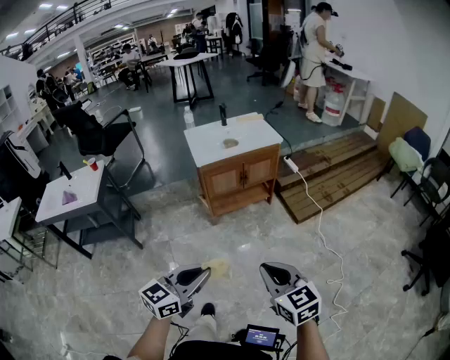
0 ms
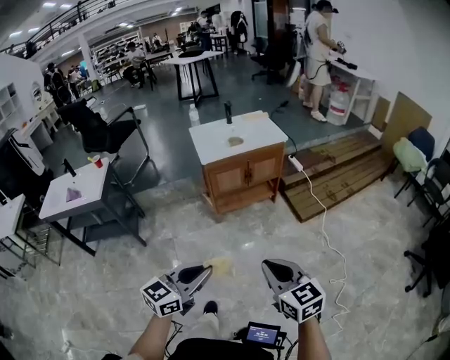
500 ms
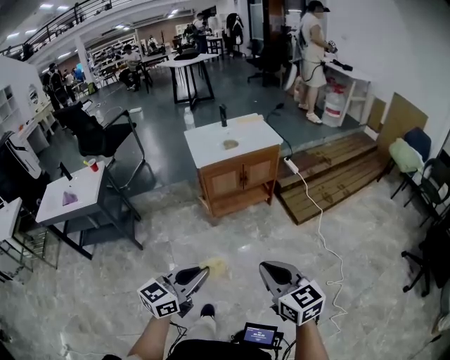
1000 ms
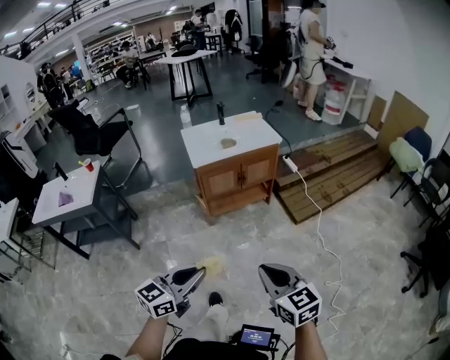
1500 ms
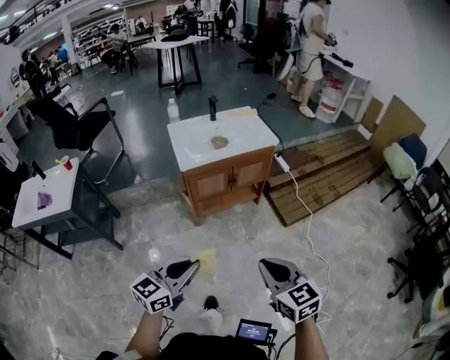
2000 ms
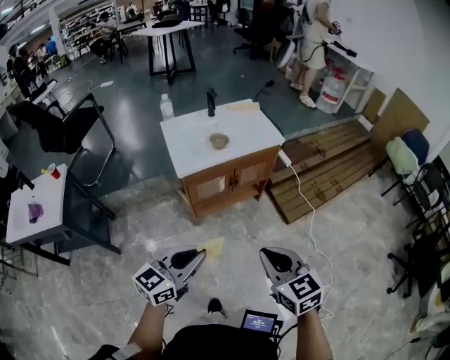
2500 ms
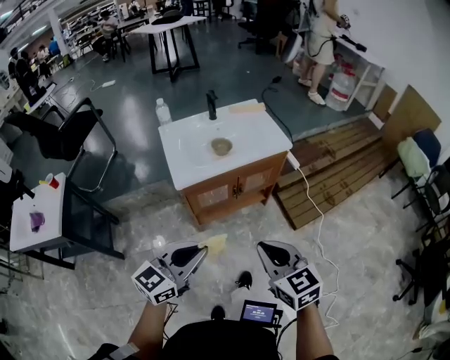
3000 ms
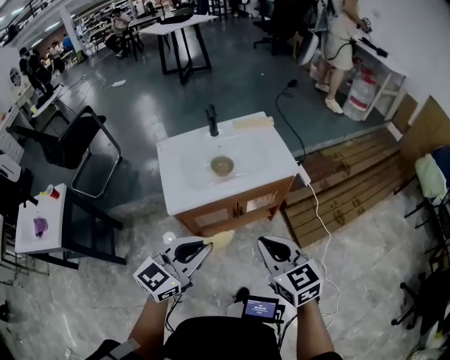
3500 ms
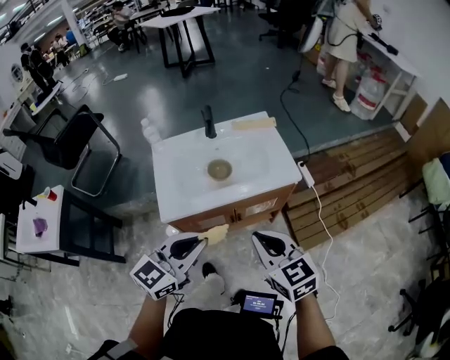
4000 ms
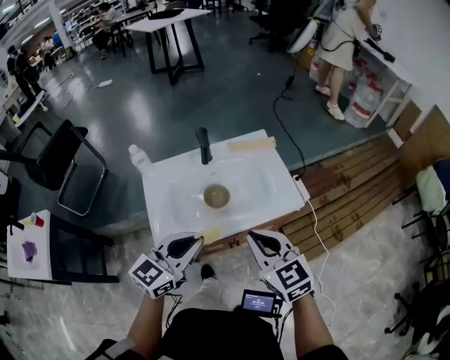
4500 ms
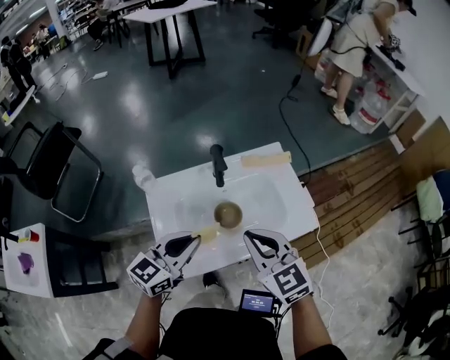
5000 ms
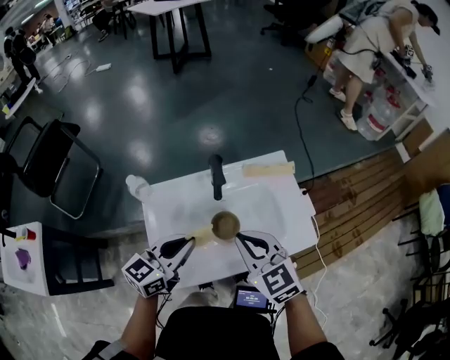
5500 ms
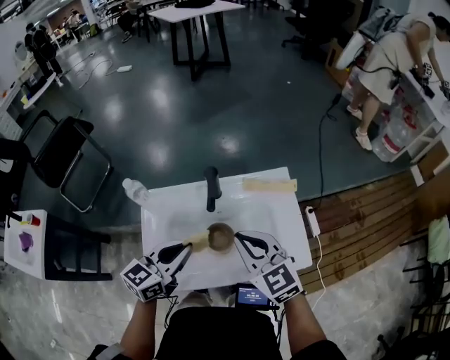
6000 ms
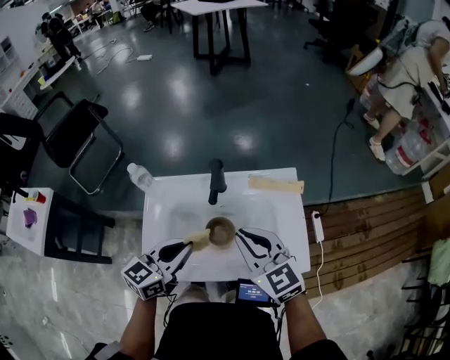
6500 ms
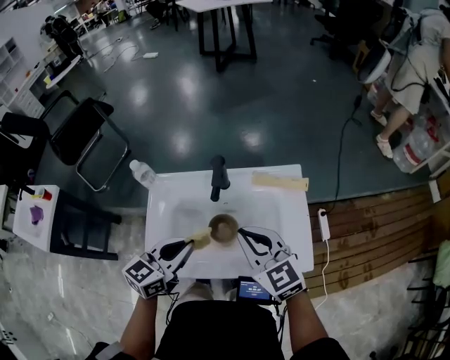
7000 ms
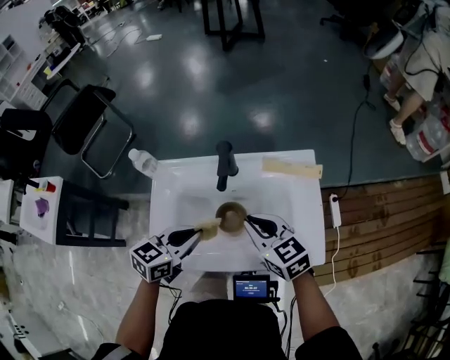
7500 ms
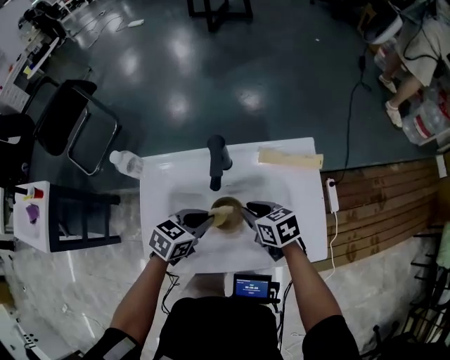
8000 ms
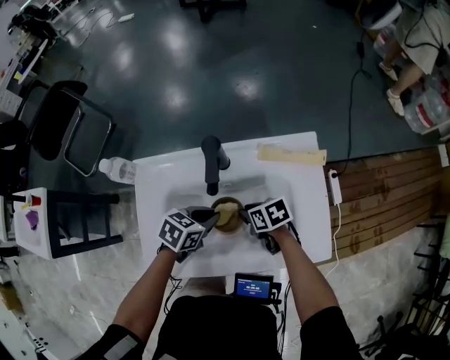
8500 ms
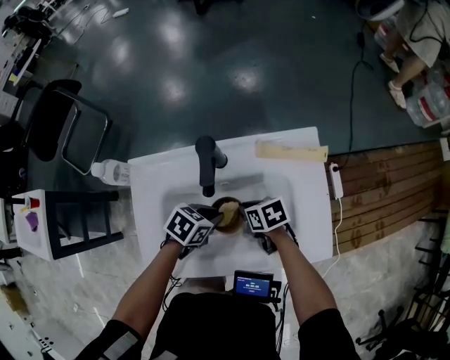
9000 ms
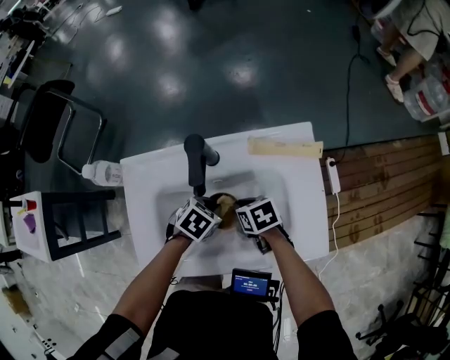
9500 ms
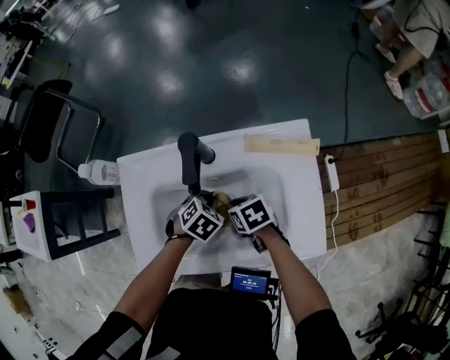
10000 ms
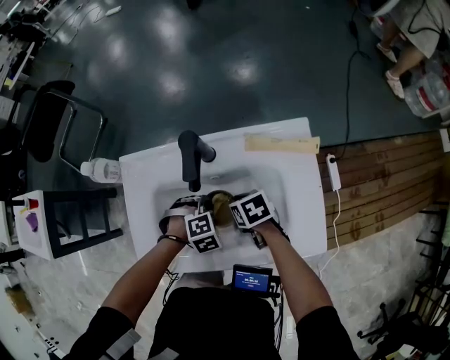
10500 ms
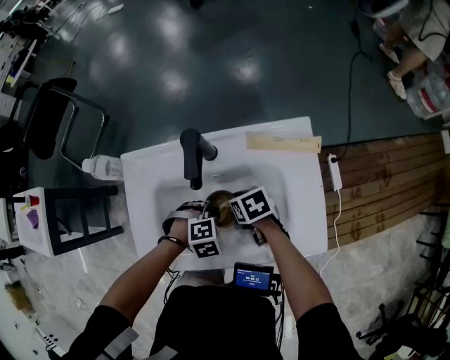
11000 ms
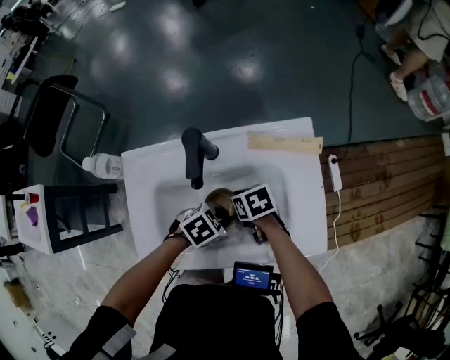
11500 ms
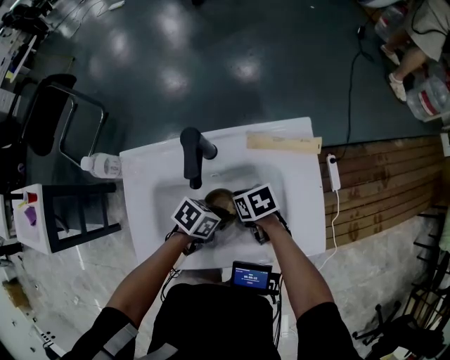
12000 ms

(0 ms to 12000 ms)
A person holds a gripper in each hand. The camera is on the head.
0 ms - 2000 ms: The two grippers go approximately 15 cm forward.
2000 ms - 4000 ms: Both grippers are carried forward, approximately 50 cm.
4000 ms - 6000 ms: Both grippers move forward, approximately 30 cm.
6000 ms - 8000 ms: The two grippers go about 20 cm downward. The right gripper turns by some 40 degrees; the left gripper tips its fingers downward by some 30 degrees.
8000 ms - 10000 ms: The two grippers go approximately 10 cm downward. The left gripper points its fingers about 30 degrees further downward.
10000 ms - 12000 ms: The left gripper shifts by about 10 cm, and turns by some 40 degrees.

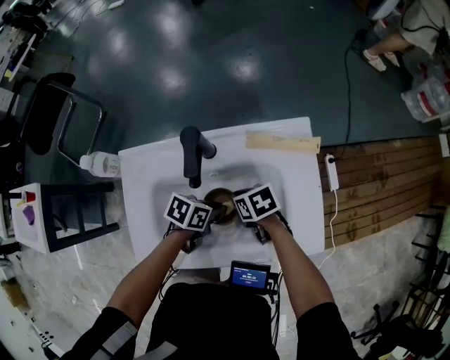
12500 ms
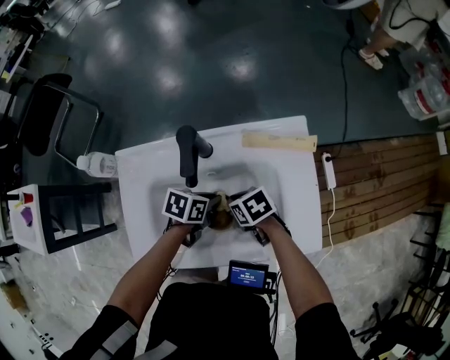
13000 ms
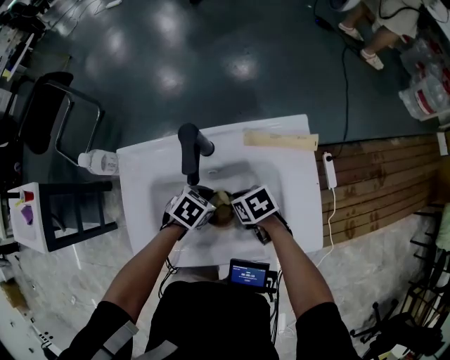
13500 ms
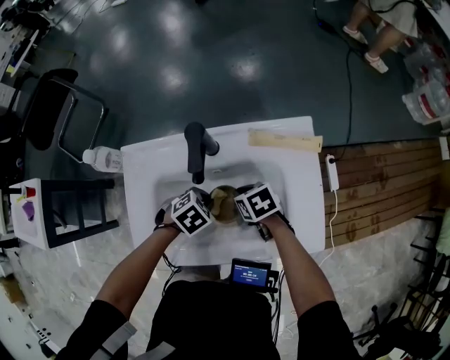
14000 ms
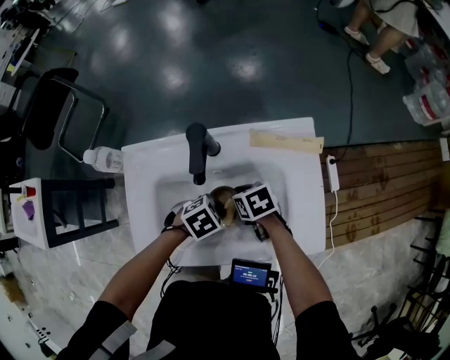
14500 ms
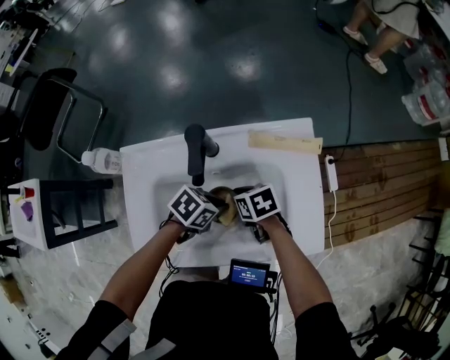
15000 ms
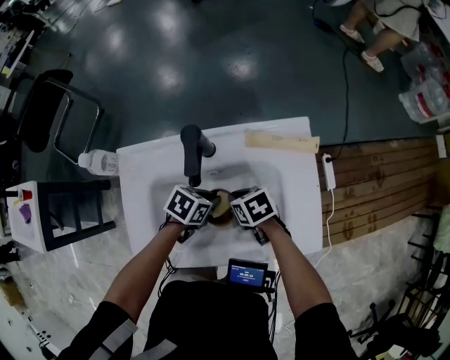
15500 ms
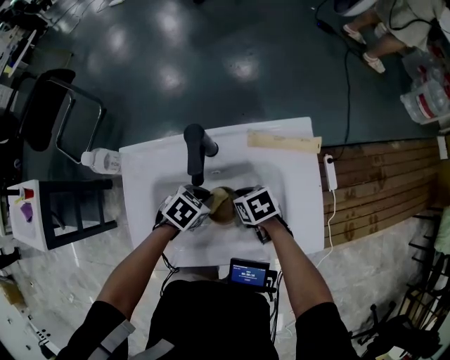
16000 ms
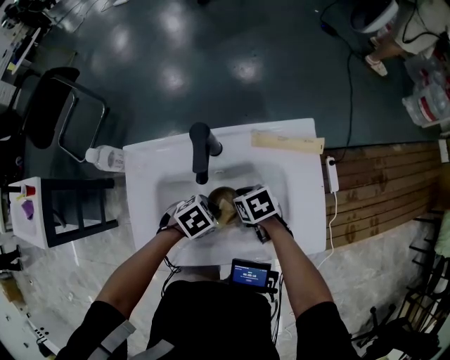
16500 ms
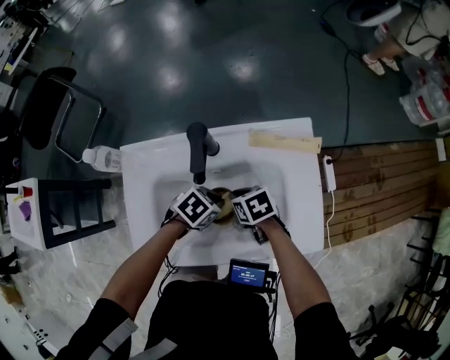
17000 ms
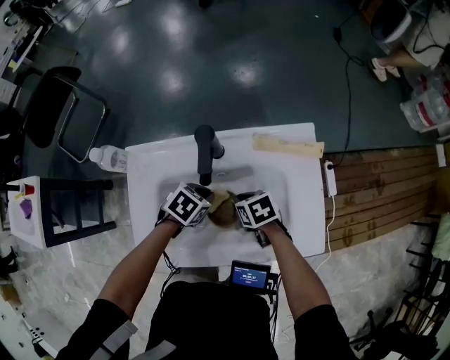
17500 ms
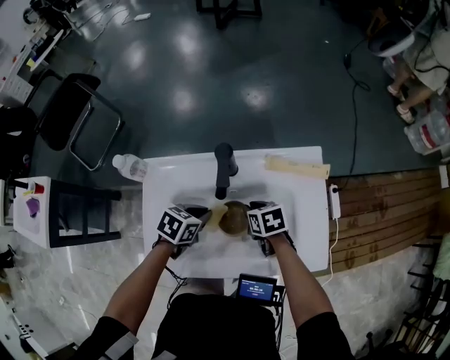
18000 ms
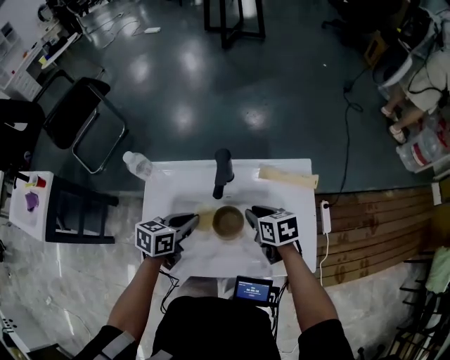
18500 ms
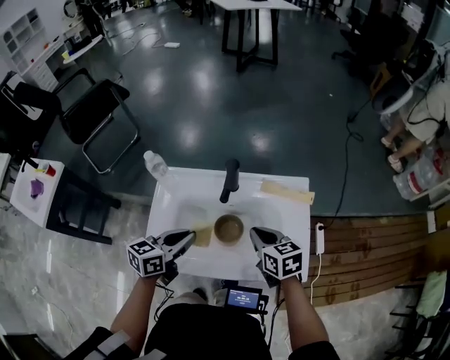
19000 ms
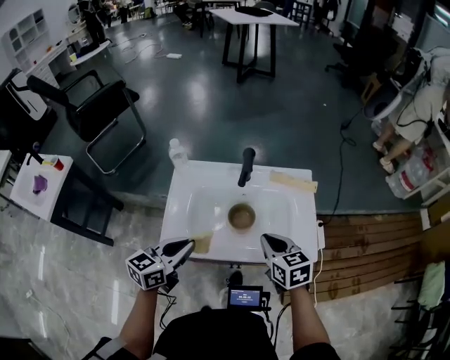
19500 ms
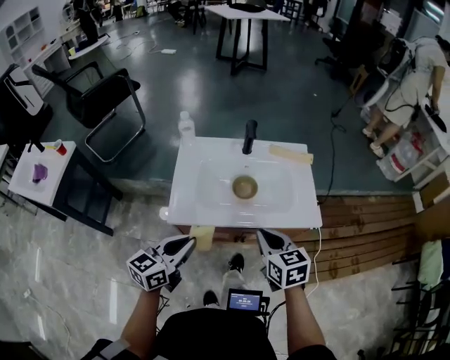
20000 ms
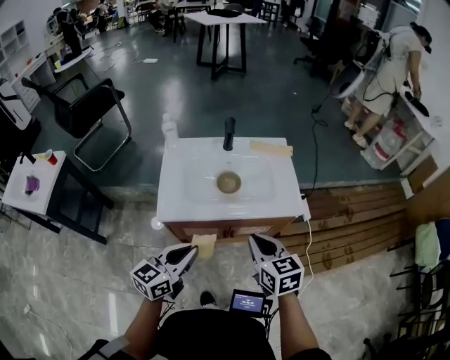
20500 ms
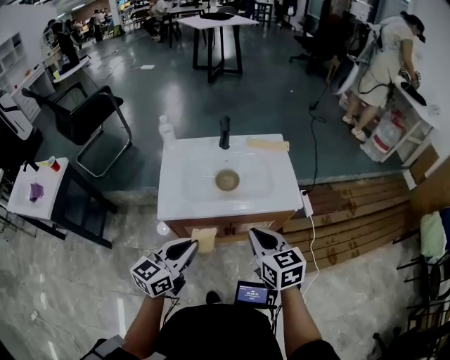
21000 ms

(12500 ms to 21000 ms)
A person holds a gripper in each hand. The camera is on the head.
12500 ms - 14500 ms: The left gripper swivels some 40 degrees.
16500 ms - 19000 ms: Both grippers move upward, some 20 cm. The left gripper tips its fingers upward by roughly 50 degrees, while the right gripper turns by roughly 30 degrees.
19000 ms - 21000 ms: Both grippers travel together backward, roughly 30 cm.

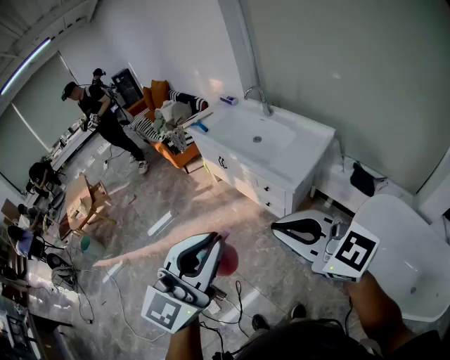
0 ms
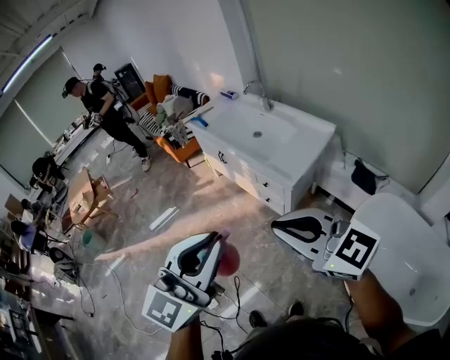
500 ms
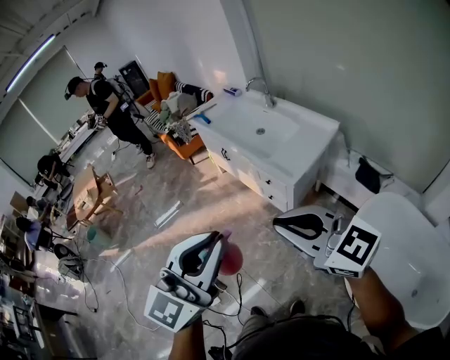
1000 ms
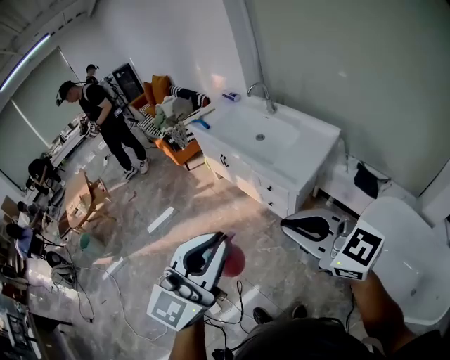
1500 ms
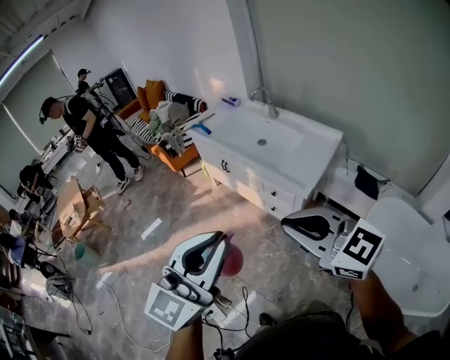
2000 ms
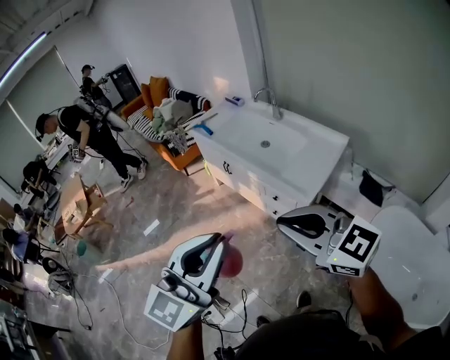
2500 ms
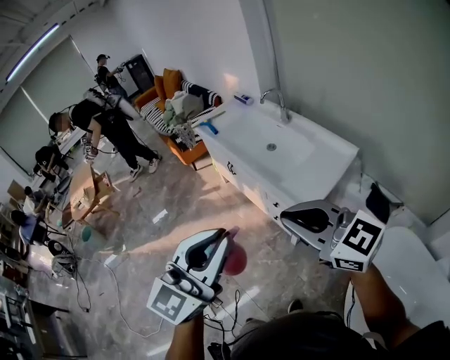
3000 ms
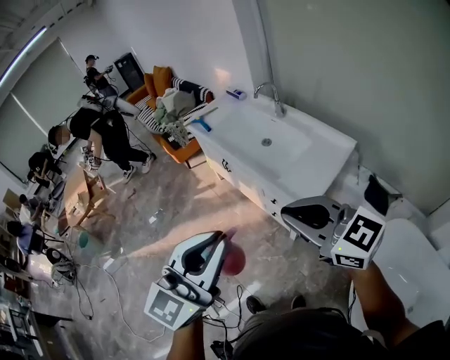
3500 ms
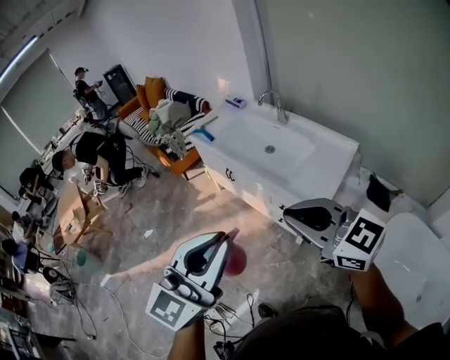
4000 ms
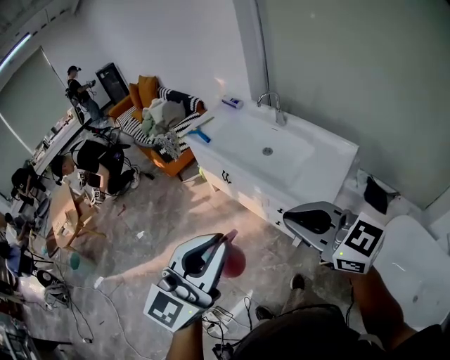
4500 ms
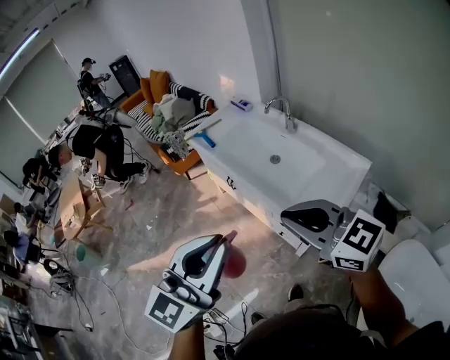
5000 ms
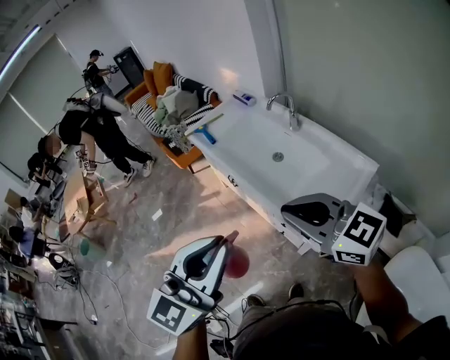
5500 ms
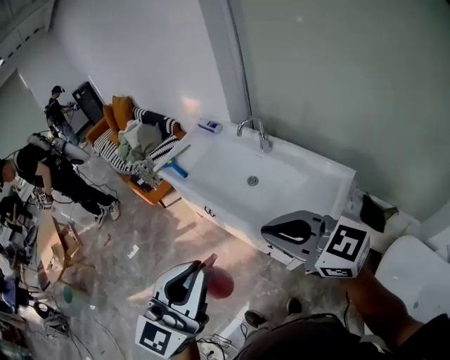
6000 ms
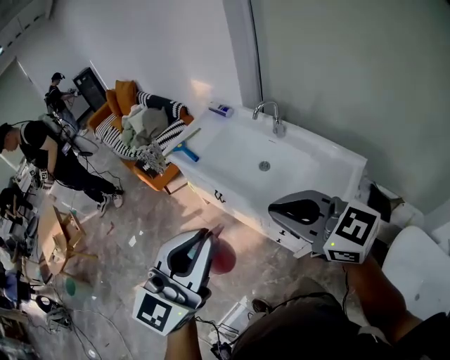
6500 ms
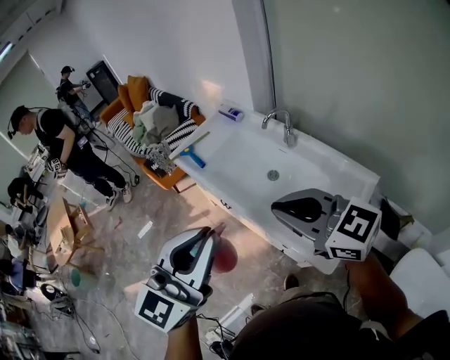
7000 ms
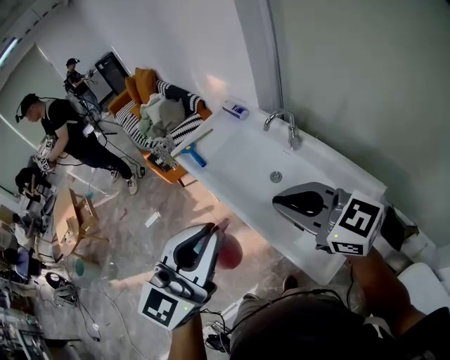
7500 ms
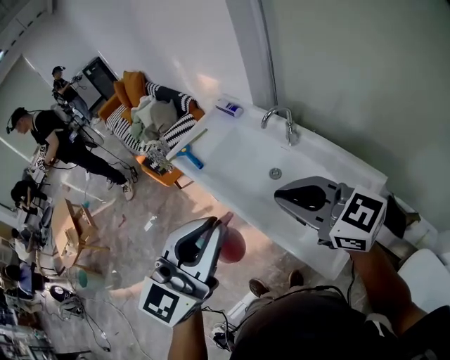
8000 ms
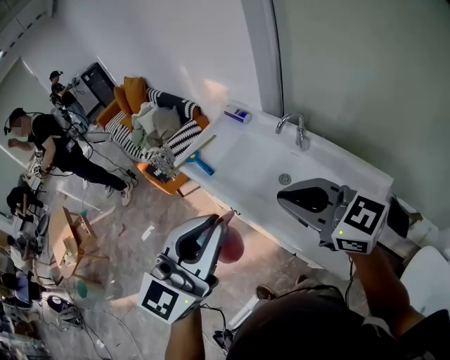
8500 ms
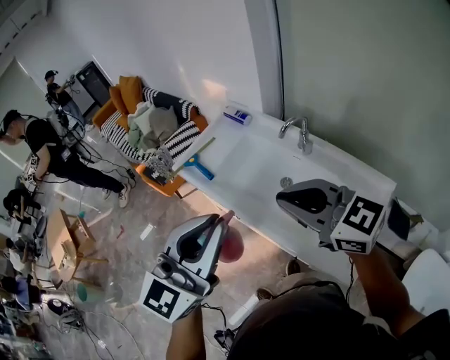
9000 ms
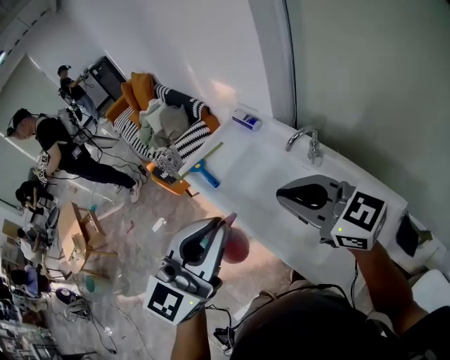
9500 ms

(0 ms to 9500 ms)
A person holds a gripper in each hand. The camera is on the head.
0 ms - 2000 ms: The right gripper shifts about 5 cm forward. The left gripper moves forward and to the left, approximately 10 cm.
2000 ms - 4000 ms: Both grippers travel together forward, about 15 cm.
4000 ms - 5500 ms: Both grippers travel together forward and to the right, about 15 cm.
5500 ms - 7500 ms: The two grippers go some 20 cm forward.
7500 ms - 9500 ms: The grippers both shift forward by roughly 15 cm.
